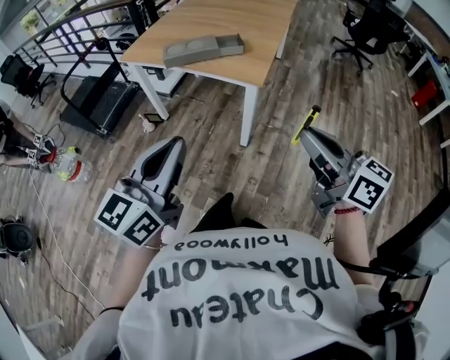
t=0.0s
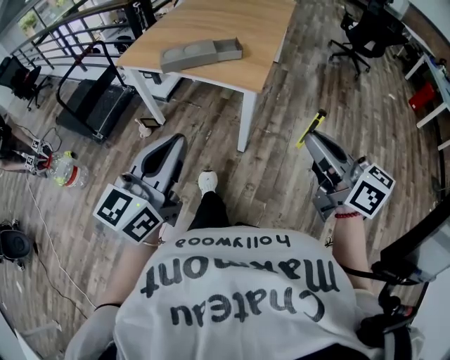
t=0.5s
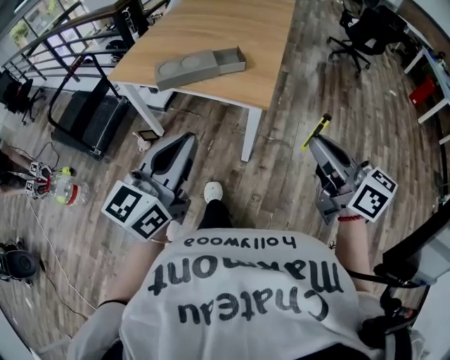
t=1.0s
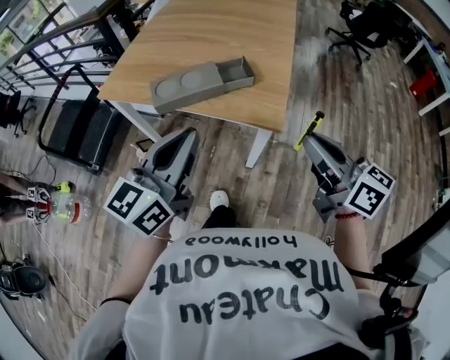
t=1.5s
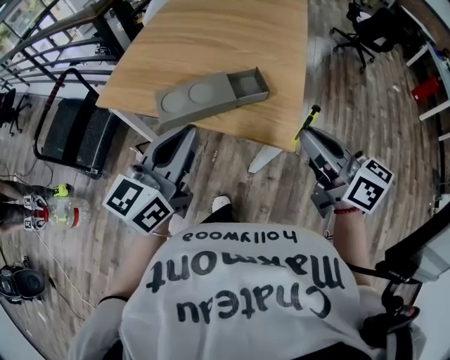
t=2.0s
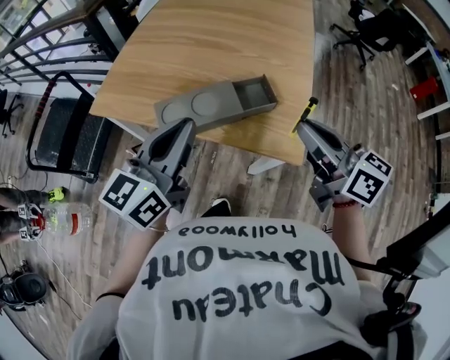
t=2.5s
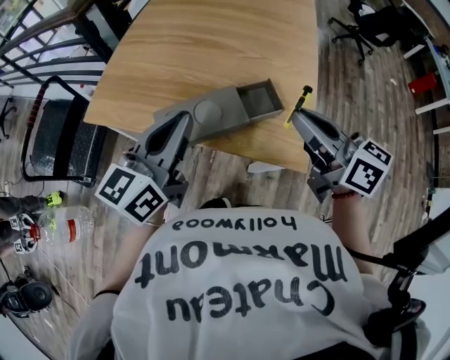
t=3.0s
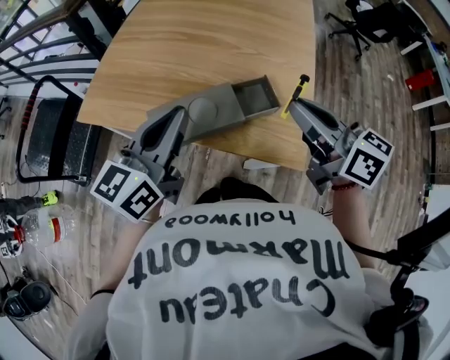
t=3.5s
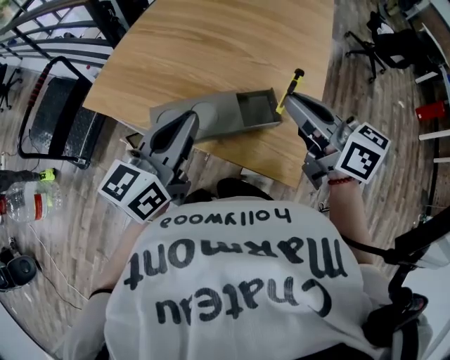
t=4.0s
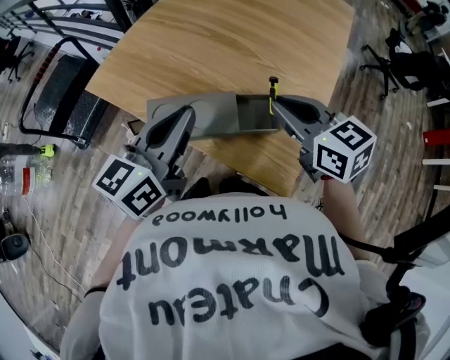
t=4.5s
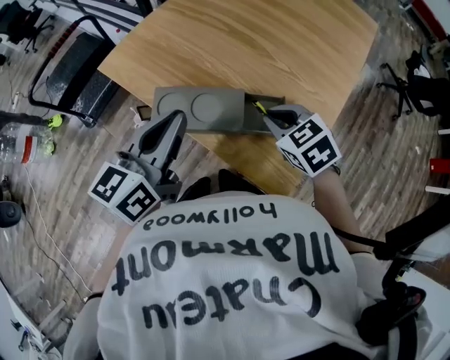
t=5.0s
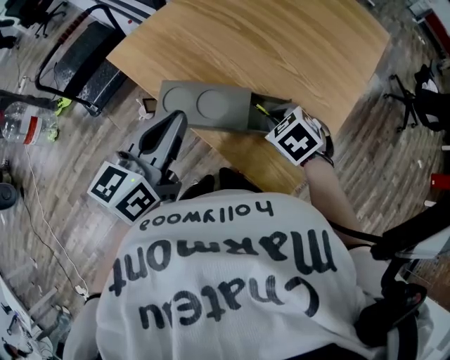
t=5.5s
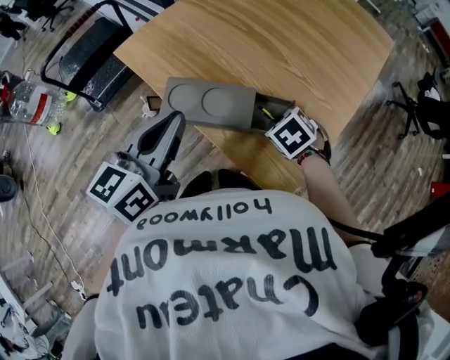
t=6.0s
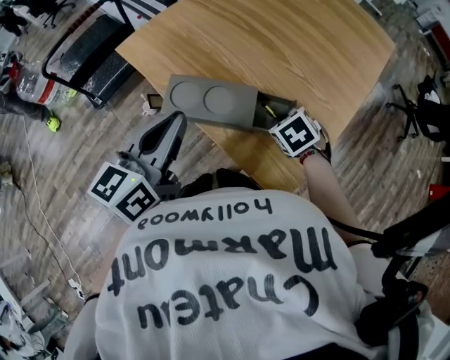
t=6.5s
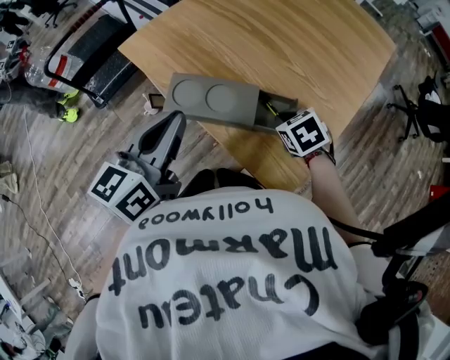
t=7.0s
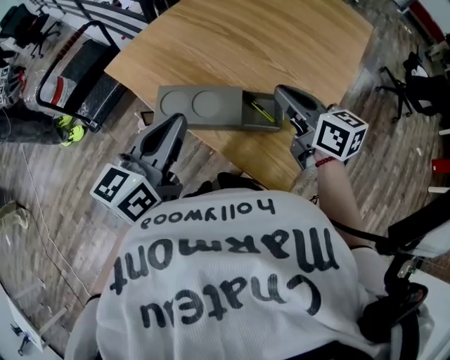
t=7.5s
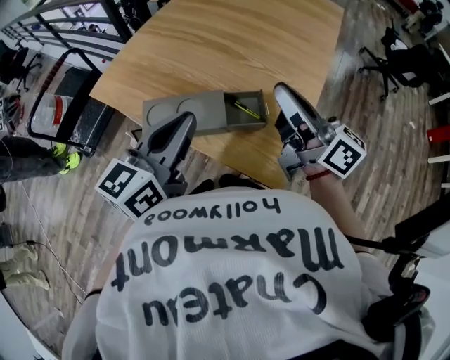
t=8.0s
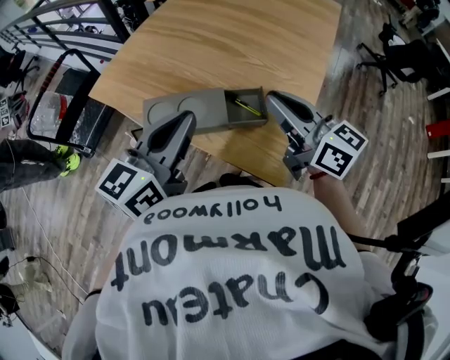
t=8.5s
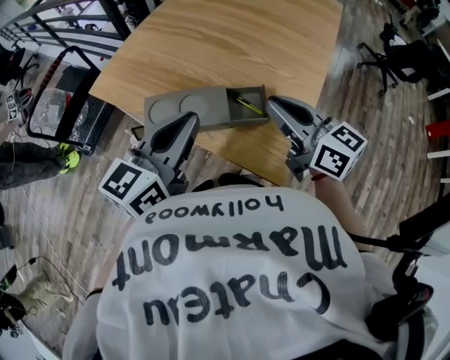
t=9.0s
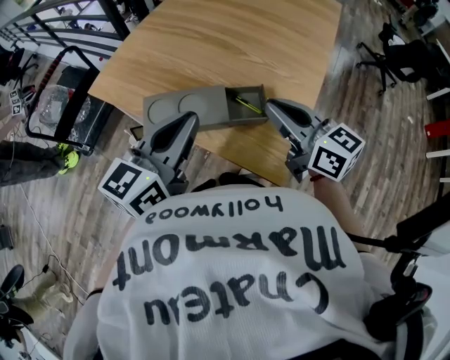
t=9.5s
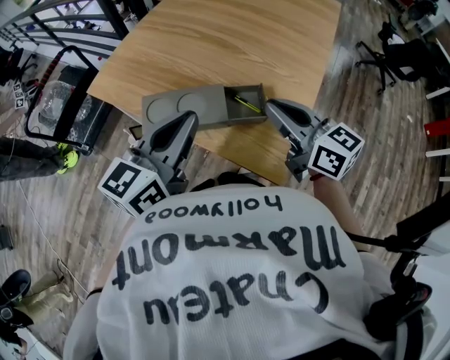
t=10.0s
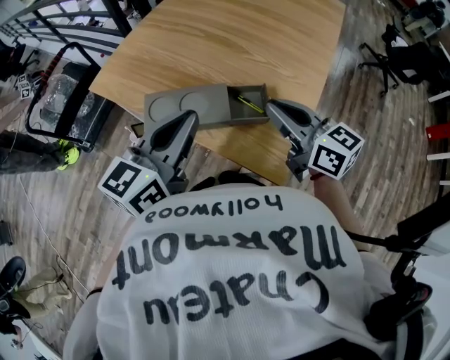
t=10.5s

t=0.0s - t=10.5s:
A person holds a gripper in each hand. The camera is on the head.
t=0.0s - t=2.0s: The two grippers go some 35 cm forward.
t=2.0s - t=4.0s: Both grippers move forward, about 15 cm.
t=4.0s - t=6.5s: The right gripper heads downward, covering approximately 25 cm, and points its fingers some 60 degrees further downward; the left gripper shifts by roughly 5 cm, and rotates roughly 20 degrees.
t=6.5s - t=8.5s: The right gripper shifts some 20 cm upward, and tilts its fingers some 70 degrees upward, while the left gripper heads to the right, covering some 5 cm, and changes its angle by some 20 degrees.
t=8.5s - t=10.5s: The grippers move only a little.

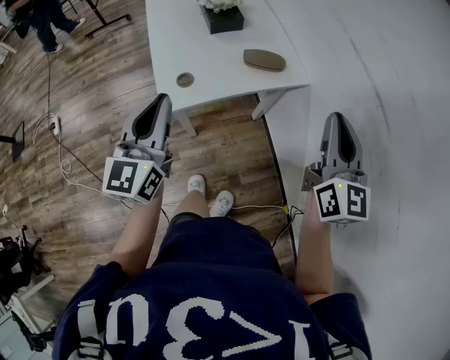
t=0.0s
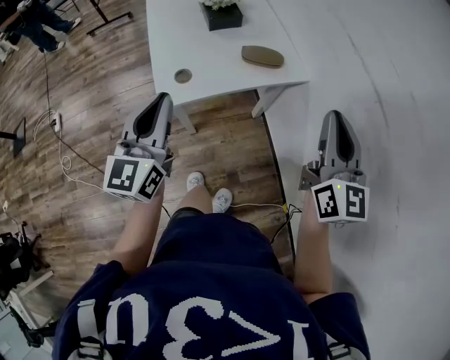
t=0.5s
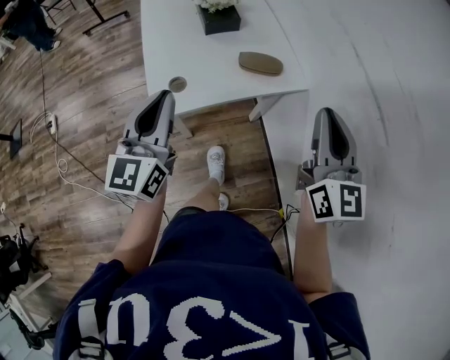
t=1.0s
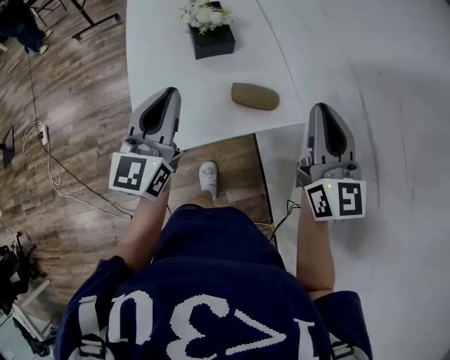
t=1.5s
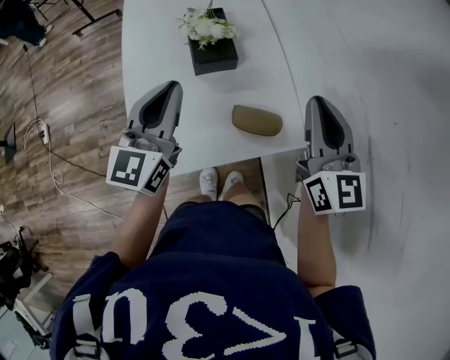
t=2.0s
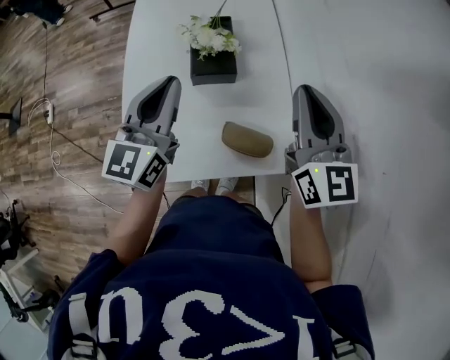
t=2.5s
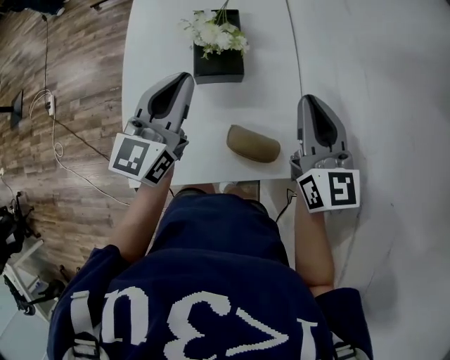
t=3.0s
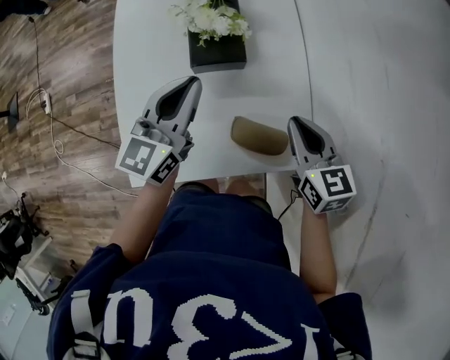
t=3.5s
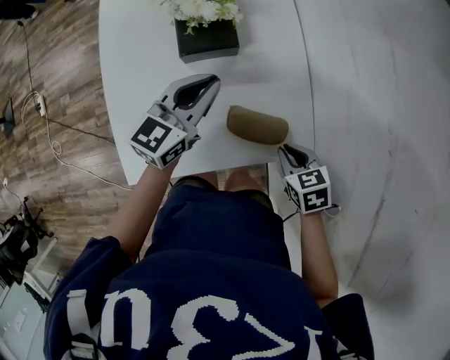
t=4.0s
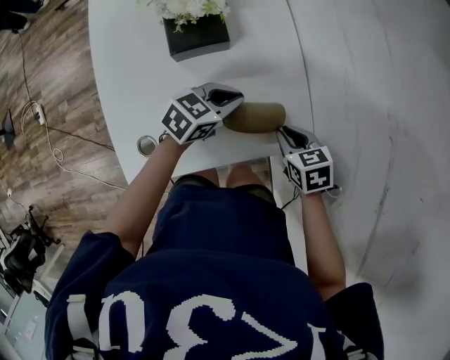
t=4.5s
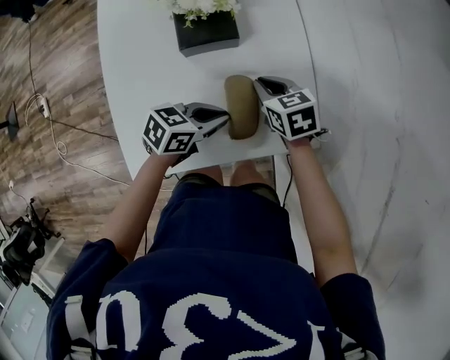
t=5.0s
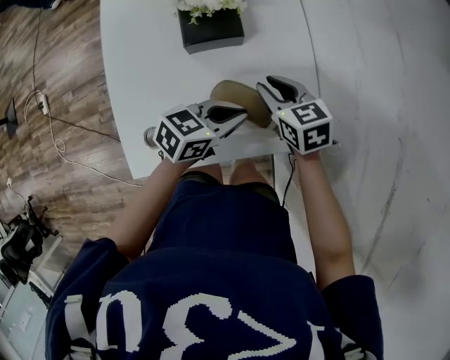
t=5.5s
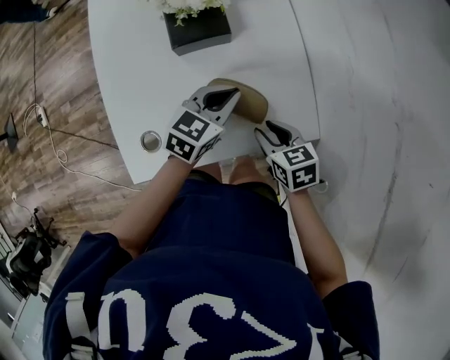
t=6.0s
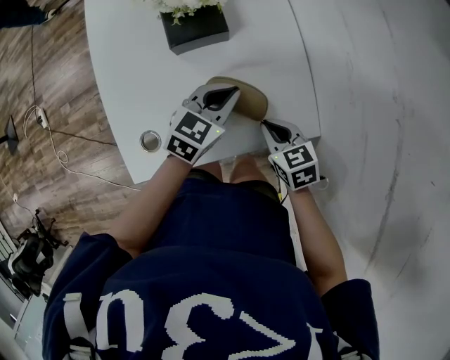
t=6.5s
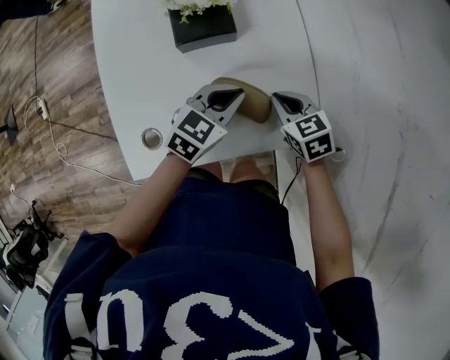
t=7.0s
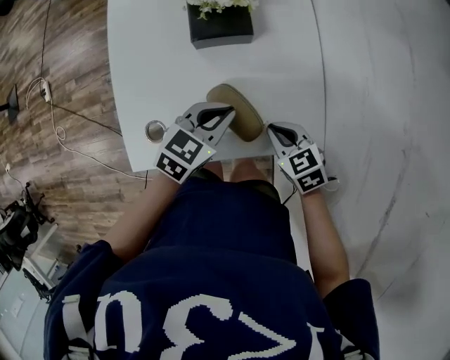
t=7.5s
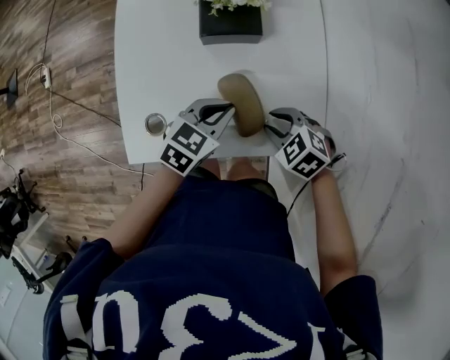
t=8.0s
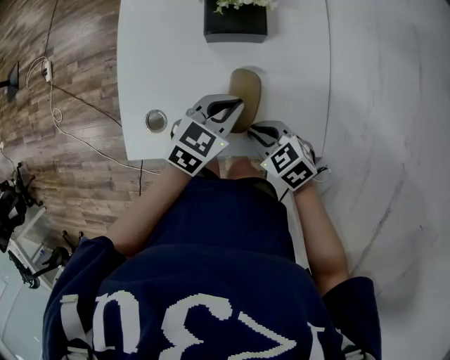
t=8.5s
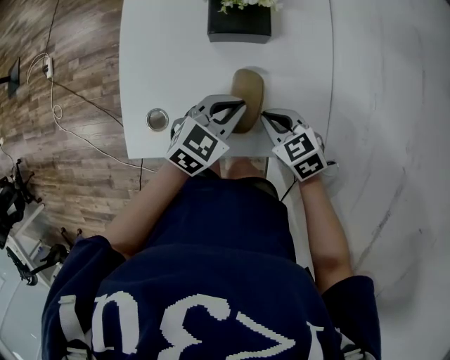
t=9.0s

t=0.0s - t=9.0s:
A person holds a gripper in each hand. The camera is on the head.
t=0.0s - t=2.0s: The two grippers go some 30 cm forward.
t=2.0s - t=4.5s: The right gripper is displaced downward by approximately 30 cm, and tilts its fingers roughly 60 degrees downward, while the left gripper is displaced downward and to the right by approximately 30 cm, and tilts its fingers some 40 degrees downward.
t=4.5s - t=7.0s: The right gripper moves forward and backward over some 15 cm, changing direction 2 times.
t=7.0s - t=9.0s: The right gripper heads to the left, covering about 5 cm, changes its angle by some 20 degrees, and opens, then closes again.

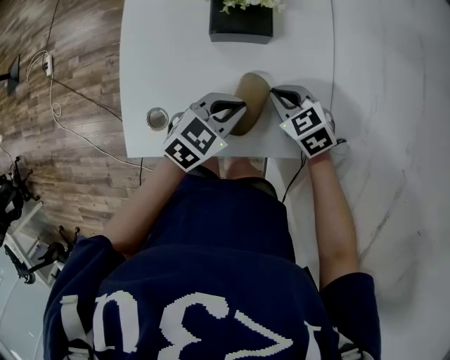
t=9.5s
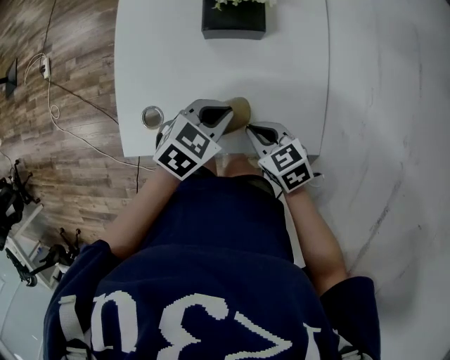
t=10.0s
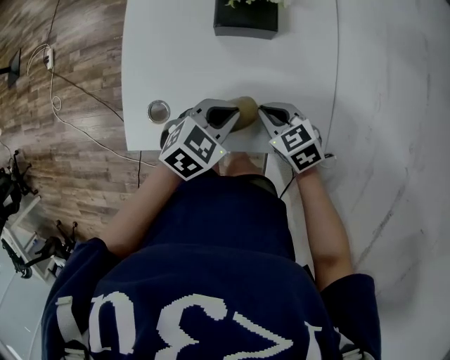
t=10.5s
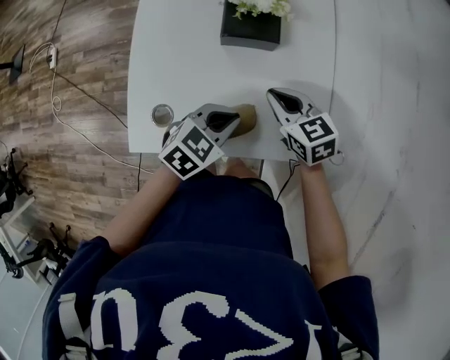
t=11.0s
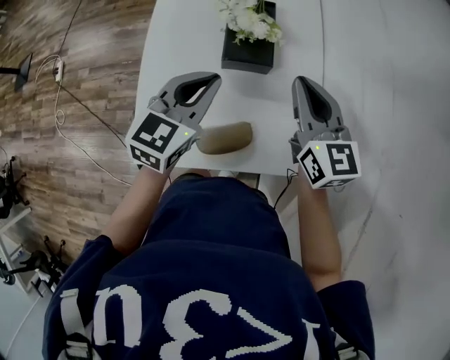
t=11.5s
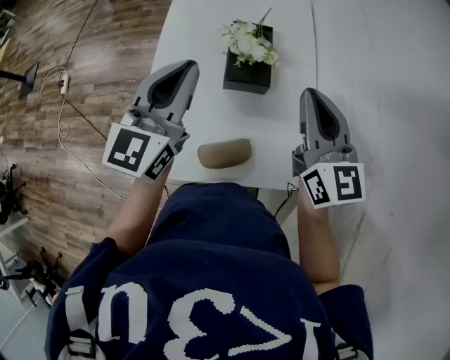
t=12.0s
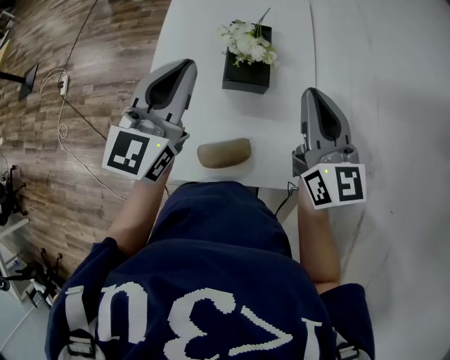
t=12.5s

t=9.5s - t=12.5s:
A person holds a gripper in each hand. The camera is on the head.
t=9.5s - t=11.0s: The right gripper goes backward and returns, about 10 cm each way.
t=11.0s - t=12.5s: The left gripper goes approximately 30 cm upward and to the left, and tips its fingers upward by some 50 degrees; the right gripper travels upward by about 25 cm, and tilts its fingers roughly 40 degrees upward.

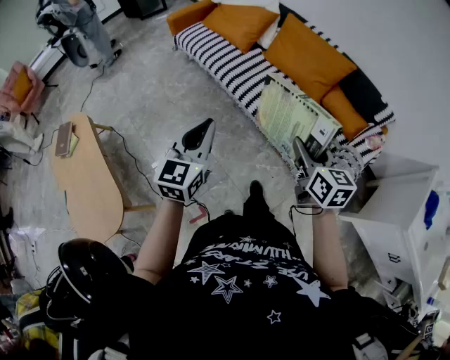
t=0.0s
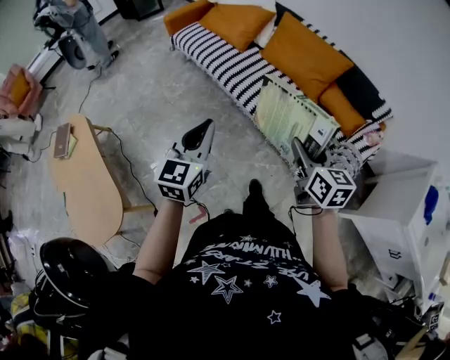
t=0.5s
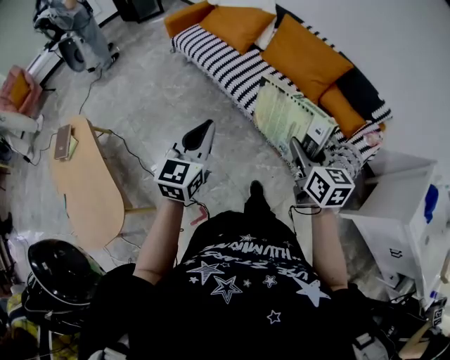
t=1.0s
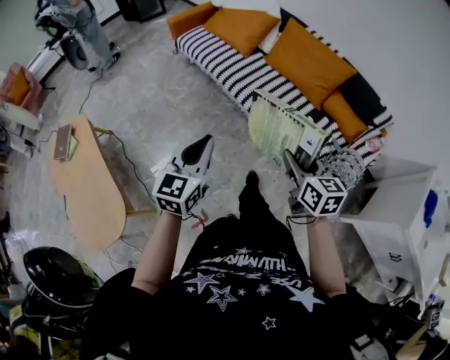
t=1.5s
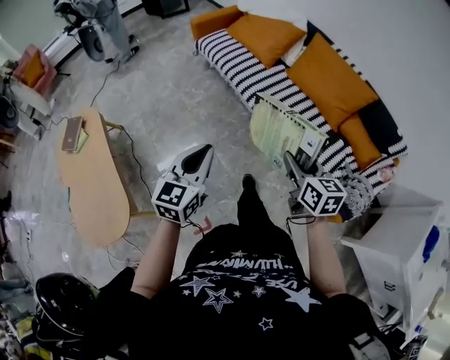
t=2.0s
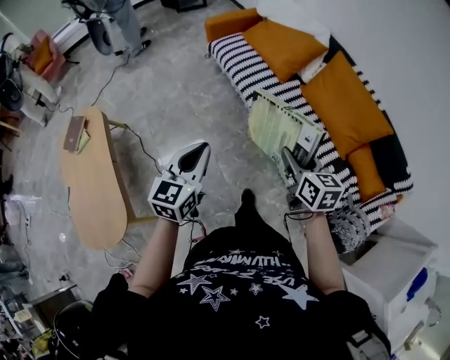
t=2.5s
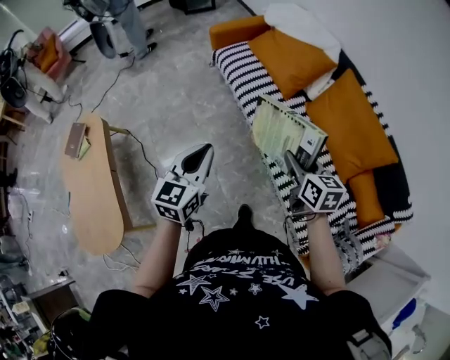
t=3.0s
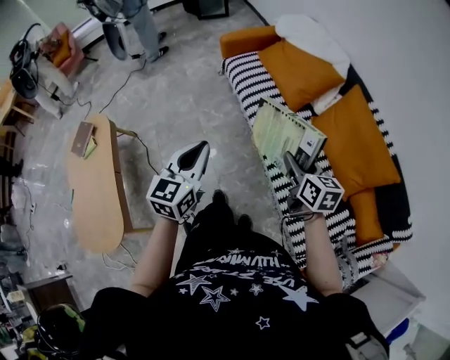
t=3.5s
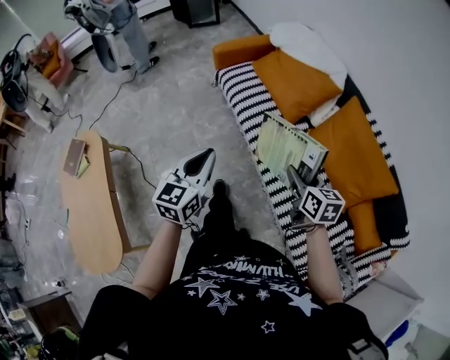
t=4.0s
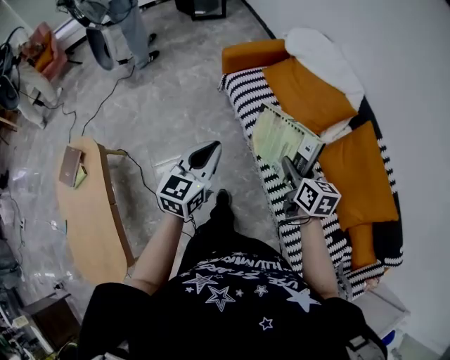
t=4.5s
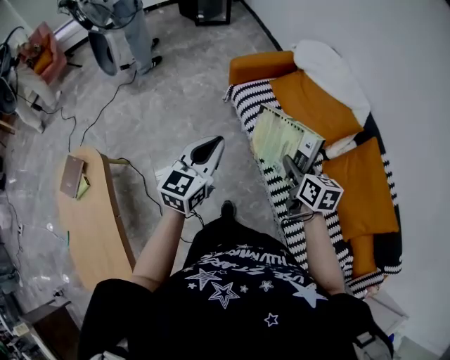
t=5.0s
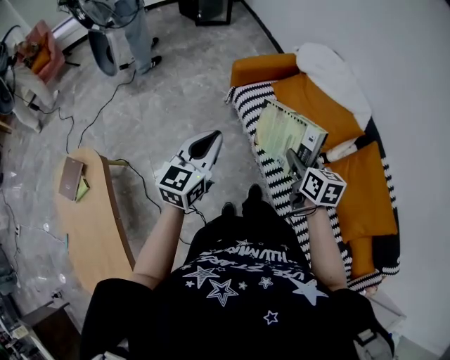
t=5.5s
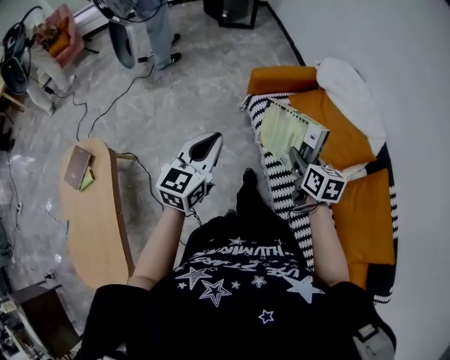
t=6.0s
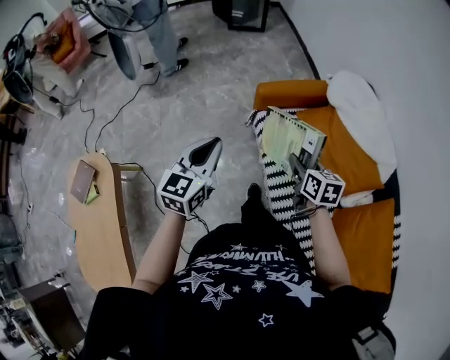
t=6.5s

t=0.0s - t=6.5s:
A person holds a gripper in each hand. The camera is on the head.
t=0.0s - t=2.0s: The left gripper shifts roughly 10 cm to the left. Meanwhile the right gripper travels to the left and forward by roughly 10 cm.
t=2.0s - t=4.5s: Both grippers are carried forward, roughly 50 cm.
t=4.5s - t=6.5s: The left gripper travels forward and to the left by approximately 30 cm, while the right gripper moves forward, about 30 cm.
